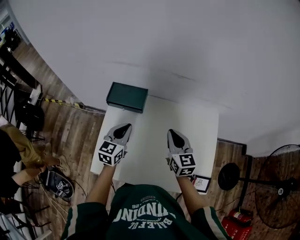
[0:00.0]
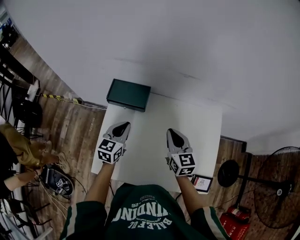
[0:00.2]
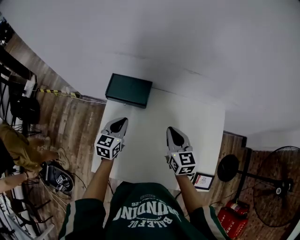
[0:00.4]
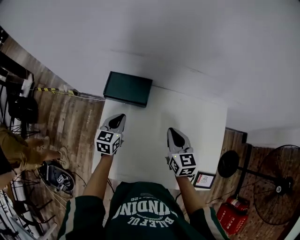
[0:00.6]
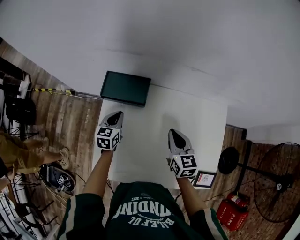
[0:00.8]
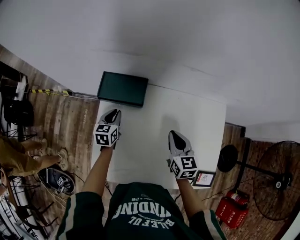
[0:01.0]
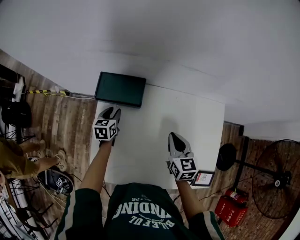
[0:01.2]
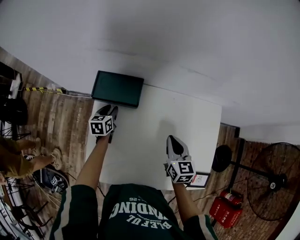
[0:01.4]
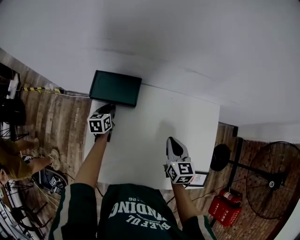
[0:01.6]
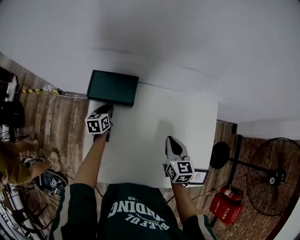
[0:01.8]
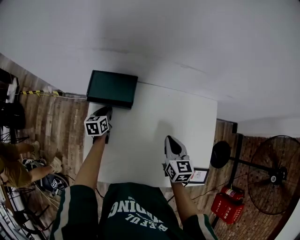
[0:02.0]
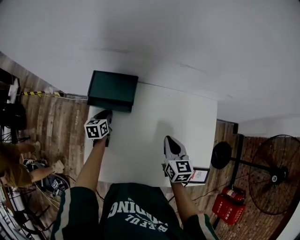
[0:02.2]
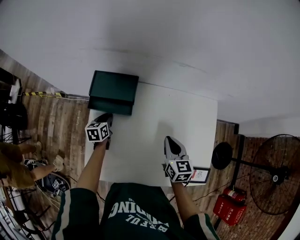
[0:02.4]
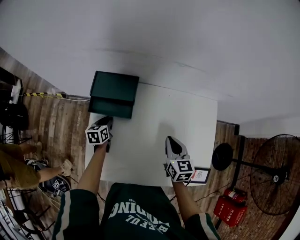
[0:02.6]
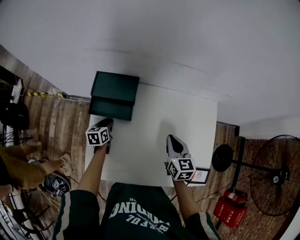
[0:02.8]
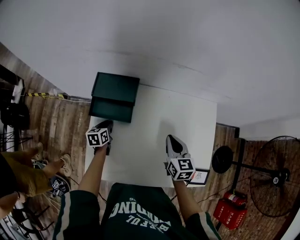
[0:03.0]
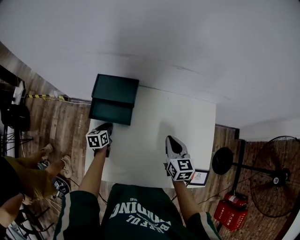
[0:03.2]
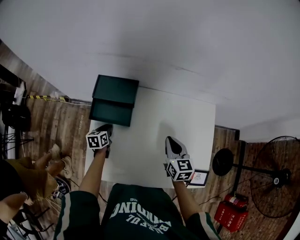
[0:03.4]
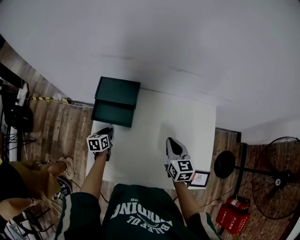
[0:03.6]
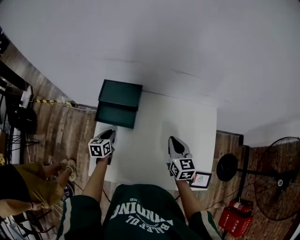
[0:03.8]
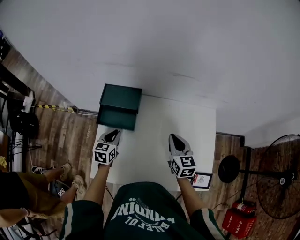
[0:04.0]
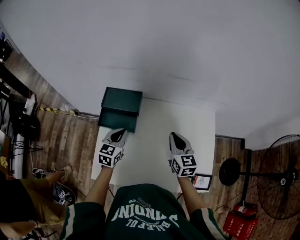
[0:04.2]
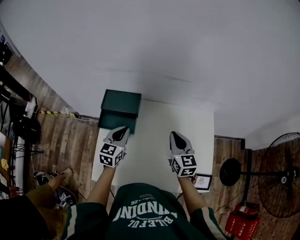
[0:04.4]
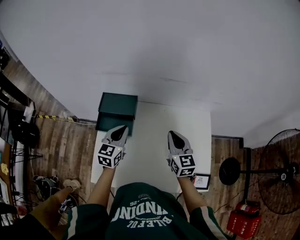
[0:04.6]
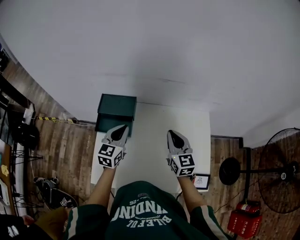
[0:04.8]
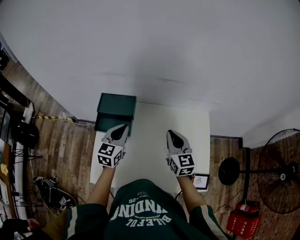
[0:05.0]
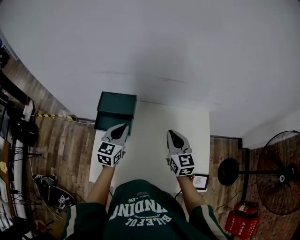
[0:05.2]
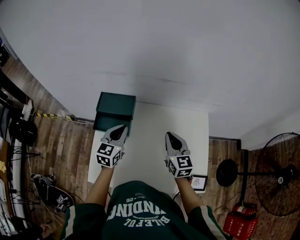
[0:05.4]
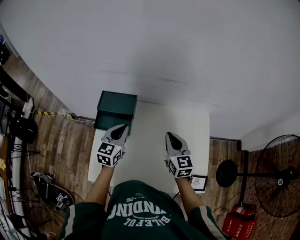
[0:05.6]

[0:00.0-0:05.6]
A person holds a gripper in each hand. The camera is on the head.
0:00.0 to 0:01.4: The left gripper is displaced downward, forward and to the left by roughly 25 cm, turns by some 30 degrees, and opens. The right gripper travels downward by approximately 10 cm.
0:01.4 to 0:02.8: The left gripper is displaced backward by some 10 cm.
0:02.8 to 0:04.2: The right gripper moves upward, some 5 cm, while the left gripper shifts roughly 20 cm upward and to the right, and changes its angle by some 30 degrees.
0:04.2 to 0:05.6: The left gripper shifts roughly 5 cm upward.

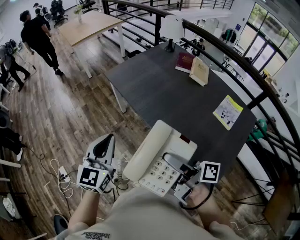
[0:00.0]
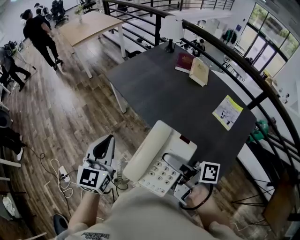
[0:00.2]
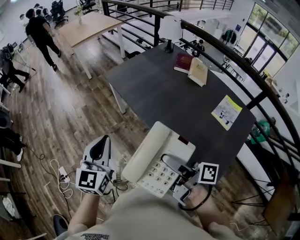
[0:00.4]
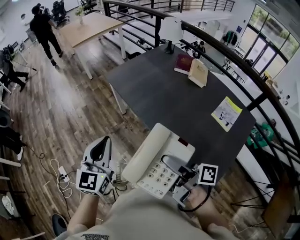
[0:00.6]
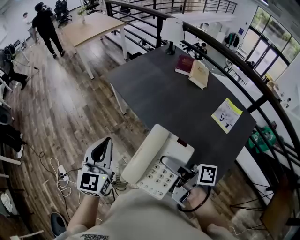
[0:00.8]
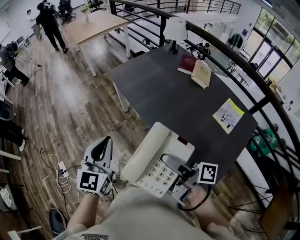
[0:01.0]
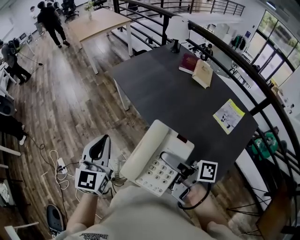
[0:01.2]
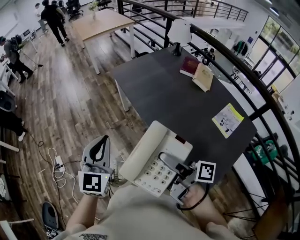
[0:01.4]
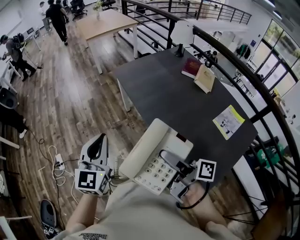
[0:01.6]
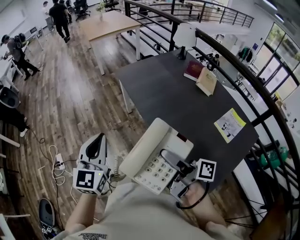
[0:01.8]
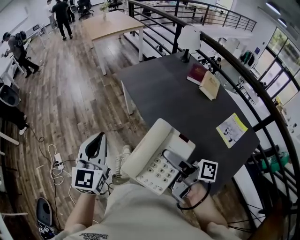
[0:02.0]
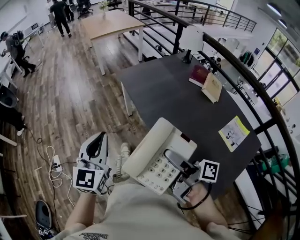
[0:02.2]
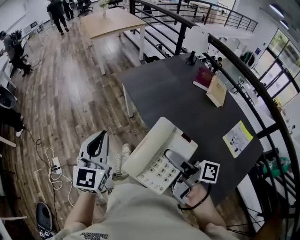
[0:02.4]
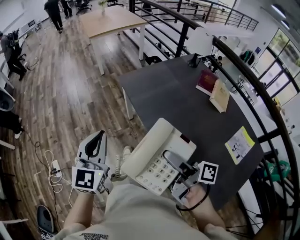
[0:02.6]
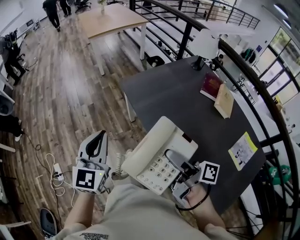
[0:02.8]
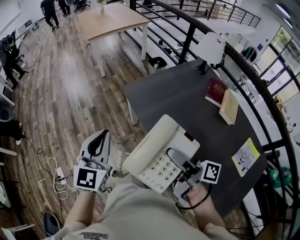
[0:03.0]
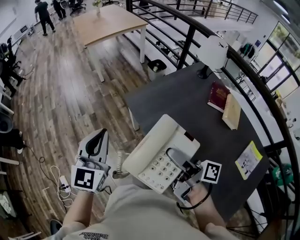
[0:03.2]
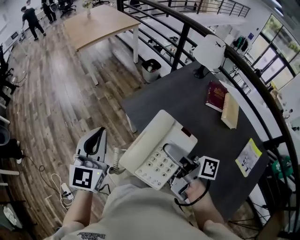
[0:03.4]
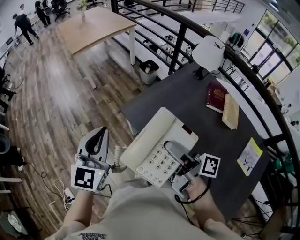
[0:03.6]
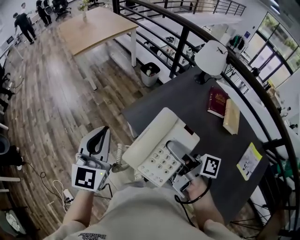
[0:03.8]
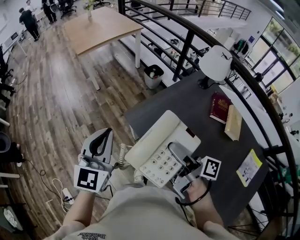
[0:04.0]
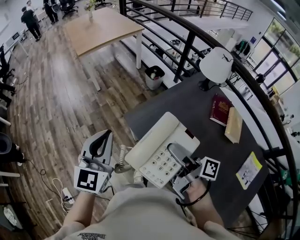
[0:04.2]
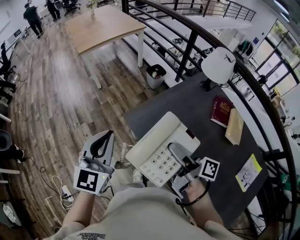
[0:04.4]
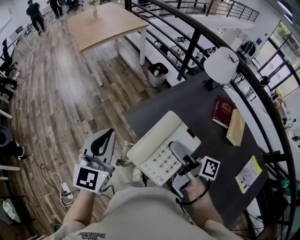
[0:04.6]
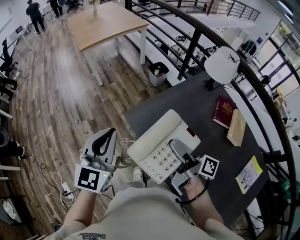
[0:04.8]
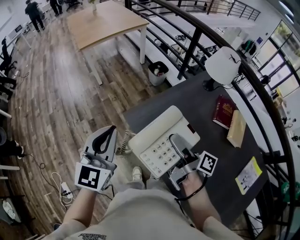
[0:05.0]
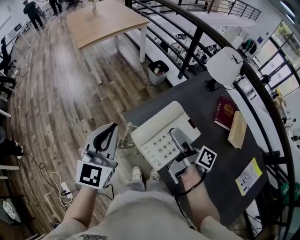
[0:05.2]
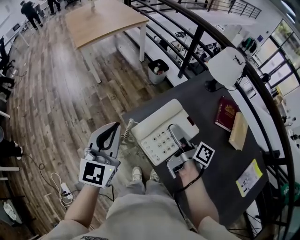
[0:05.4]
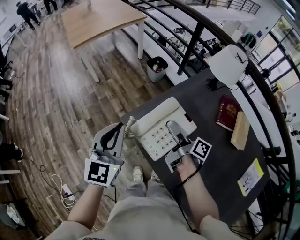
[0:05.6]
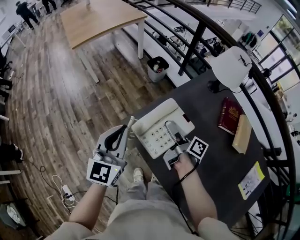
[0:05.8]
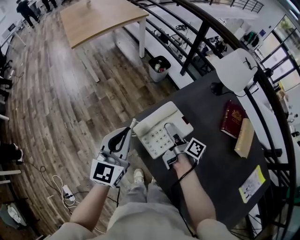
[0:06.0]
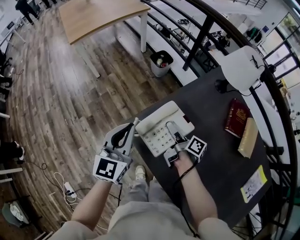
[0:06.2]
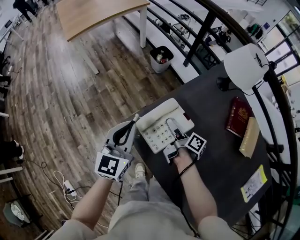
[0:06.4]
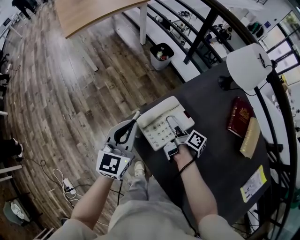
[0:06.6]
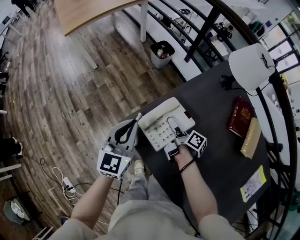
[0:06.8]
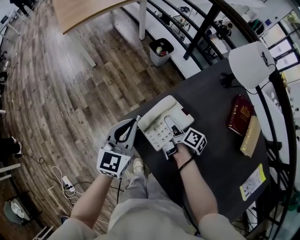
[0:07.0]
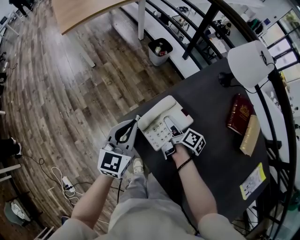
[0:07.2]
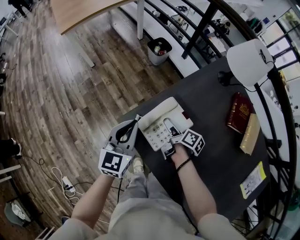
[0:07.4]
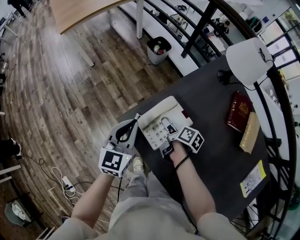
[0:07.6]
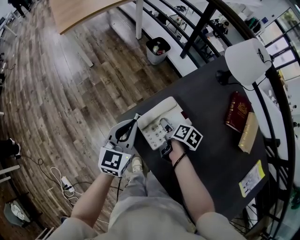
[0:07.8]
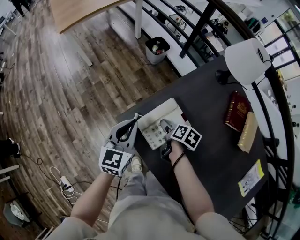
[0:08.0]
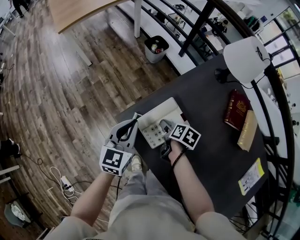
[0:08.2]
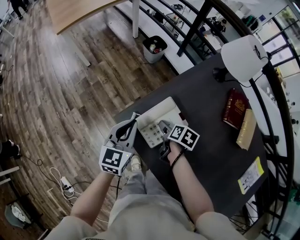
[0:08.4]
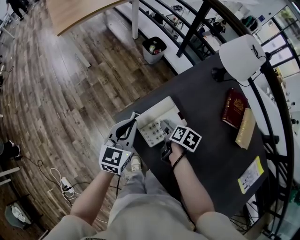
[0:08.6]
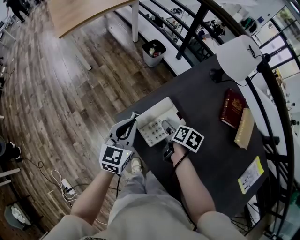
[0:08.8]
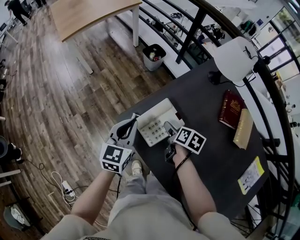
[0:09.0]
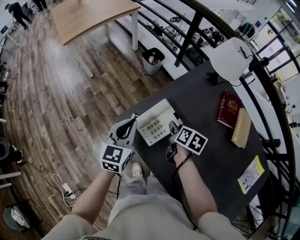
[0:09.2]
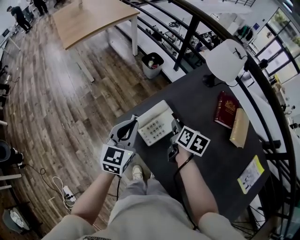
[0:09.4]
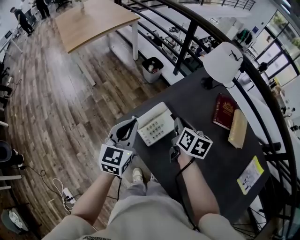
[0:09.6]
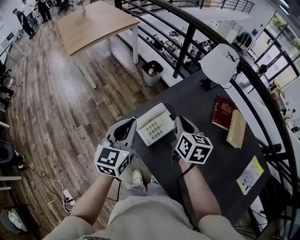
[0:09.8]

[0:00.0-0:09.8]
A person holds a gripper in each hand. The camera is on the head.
0:00.0 to 0:01.4: The left gripper shifts approximately 5 cm backward.
0:01.4 to 0:02.8: The grippers both shift forward by about 25 cm.
0:02.8 to 0:04.2: The two grippers go about 25 cm forward.
0:04.2 to 0:05.6: The left gripper shifts some 15 cm forward, downward and to the right. The right gripper goes some 20 cm forward and downward.
0:05.6 to 0:07.0: The two grippers go about 20 cm downward and forward. The right gripper rotates approximately 20 degrees.
0:07.0 to 0:08.4: The right gripper travels backward by approximately 5 cm, tips its fingers downward by roughly 30 degrees, and opens up.
0:08.4 to 0:09.8: The right gripper moves upward, some 25 cm, tilts its fingers roughly 30 degrees upward, and closes. Meanwhile the left gripper travels upward by approximately 15 cm.

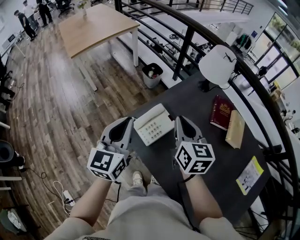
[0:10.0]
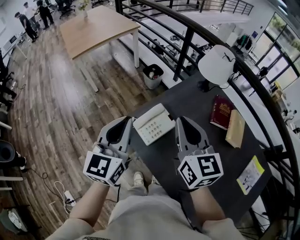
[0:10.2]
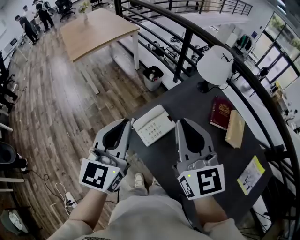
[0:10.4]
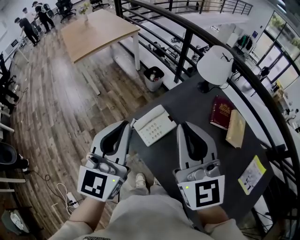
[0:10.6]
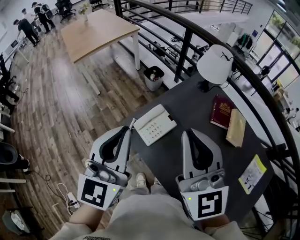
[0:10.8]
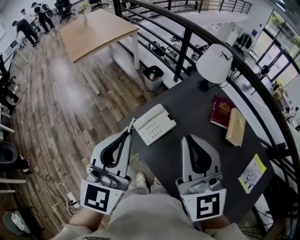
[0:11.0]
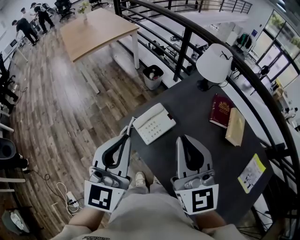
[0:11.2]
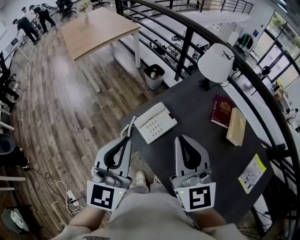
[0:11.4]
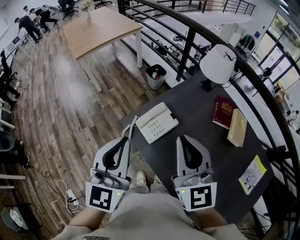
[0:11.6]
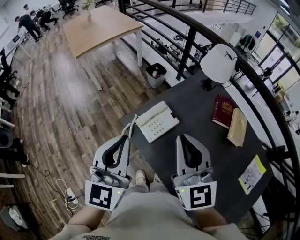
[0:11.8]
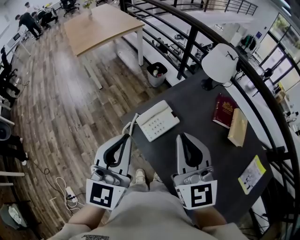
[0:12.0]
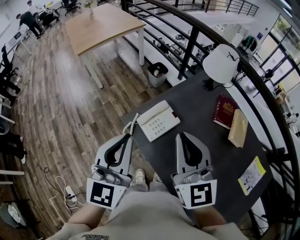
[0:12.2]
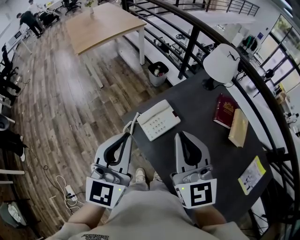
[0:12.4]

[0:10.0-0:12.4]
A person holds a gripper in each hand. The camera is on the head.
0:10.0 to 0:11.2: The two grippers go about 15 cm upward and backward. The right gripper changes its angle by roughly 30 degrees.
0:11.2 to 0:12.4: The grippers move only a little.

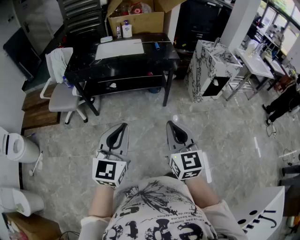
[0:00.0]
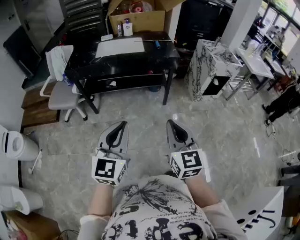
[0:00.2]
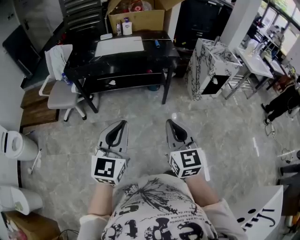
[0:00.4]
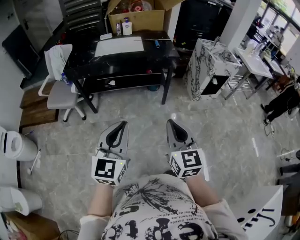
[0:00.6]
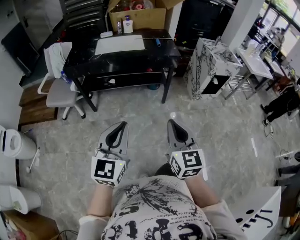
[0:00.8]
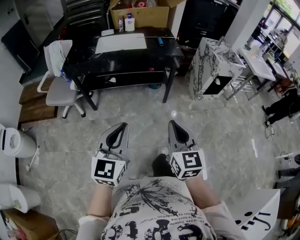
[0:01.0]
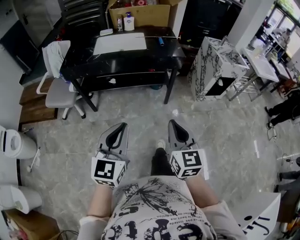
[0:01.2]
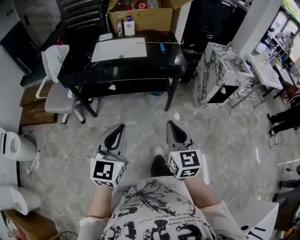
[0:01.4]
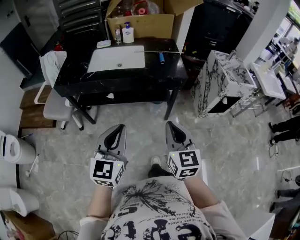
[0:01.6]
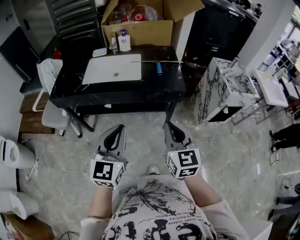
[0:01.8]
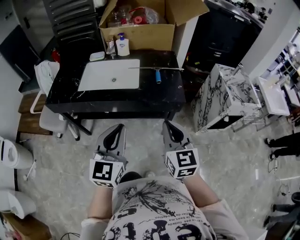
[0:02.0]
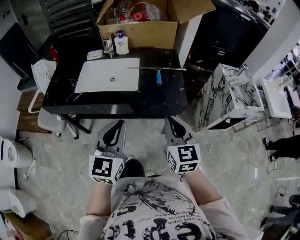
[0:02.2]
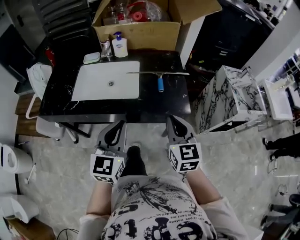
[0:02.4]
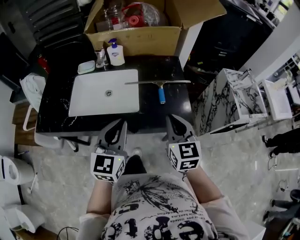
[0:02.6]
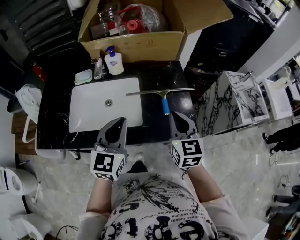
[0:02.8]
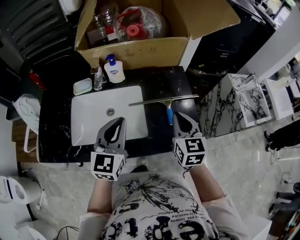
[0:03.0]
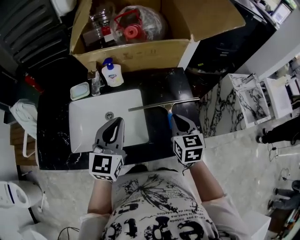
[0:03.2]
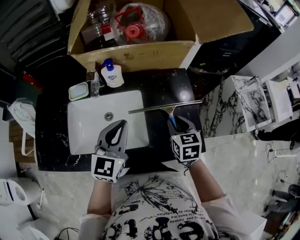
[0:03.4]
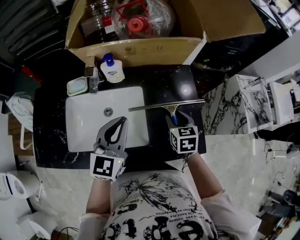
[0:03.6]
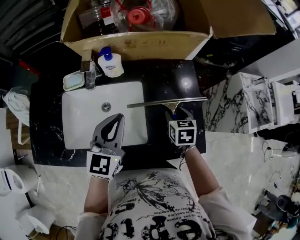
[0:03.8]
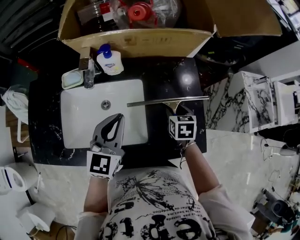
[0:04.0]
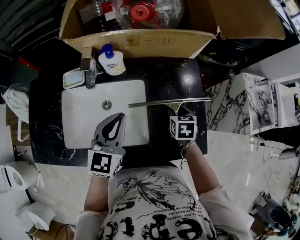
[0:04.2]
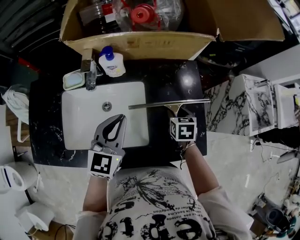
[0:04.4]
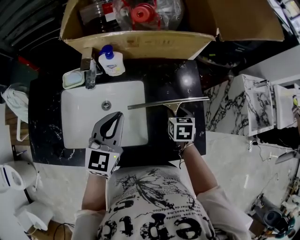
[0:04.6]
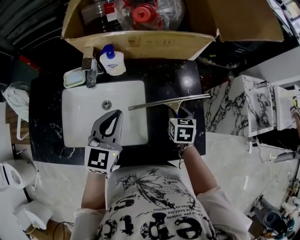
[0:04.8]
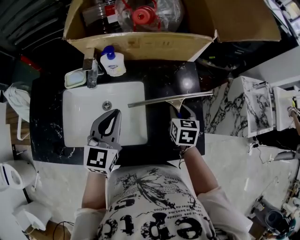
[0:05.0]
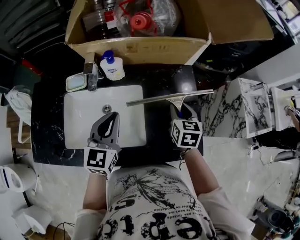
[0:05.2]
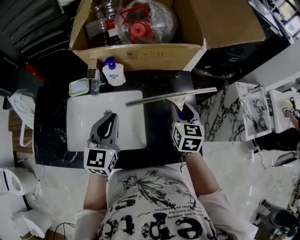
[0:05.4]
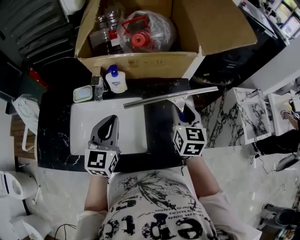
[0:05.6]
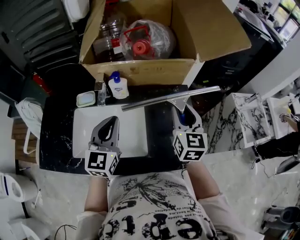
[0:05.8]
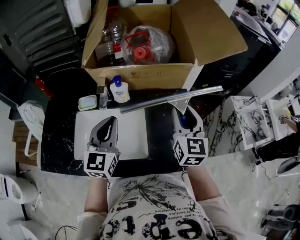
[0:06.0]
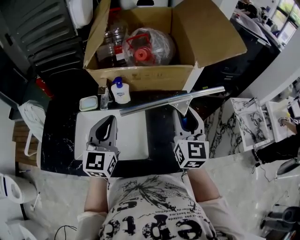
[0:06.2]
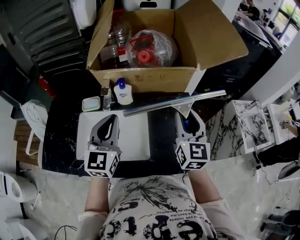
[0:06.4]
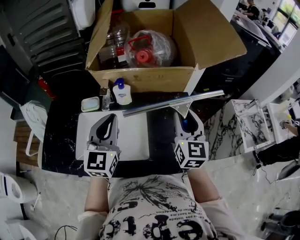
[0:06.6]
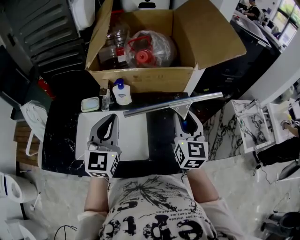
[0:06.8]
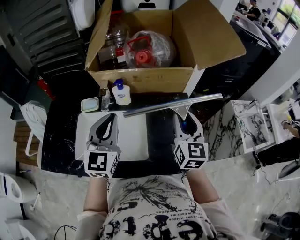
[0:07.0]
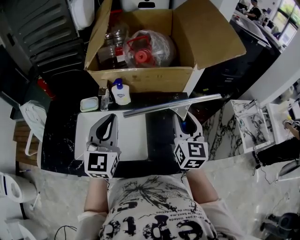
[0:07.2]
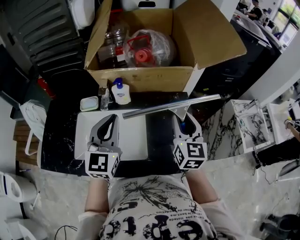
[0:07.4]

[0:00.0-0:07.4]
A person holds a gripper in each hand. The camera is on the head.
0:00.0 to 0:01.4: Both grippers move forward, approximately 15 cm.
0:01.4 to 0:03.0: Both grippers are carried forward, approximately 60 cm.
0:03.0 to 0:04.4: The left gripper shifts roughly 10 cm forward and downward, while the right gripper travels downward and forward by some 20 cm, tilts its fingers some 30 degrees downward, and opens its fingers.
0:04.4 to 0:06.0: The right gripper moves upward, some 30 cm, and tilts its fingers roughly 50 degrees upward, while the left gripper heads upward, covering roughly 10 cm.
0:06.0 to 0:07.4: The grippers make only small movements.
